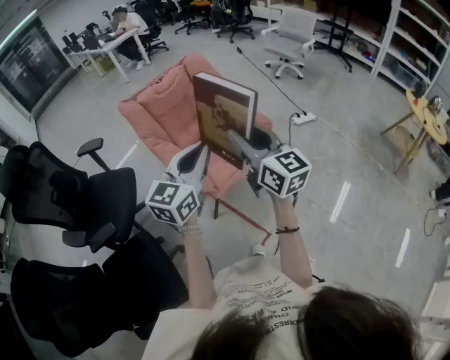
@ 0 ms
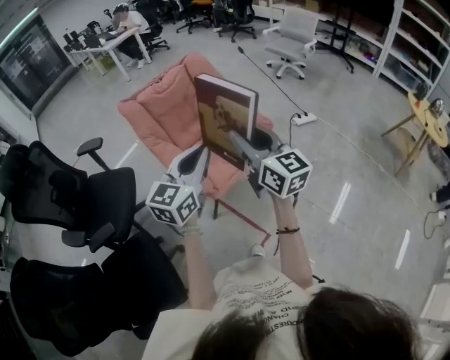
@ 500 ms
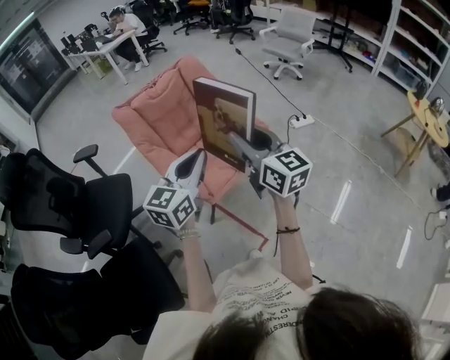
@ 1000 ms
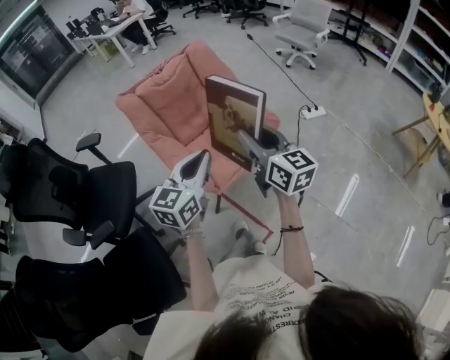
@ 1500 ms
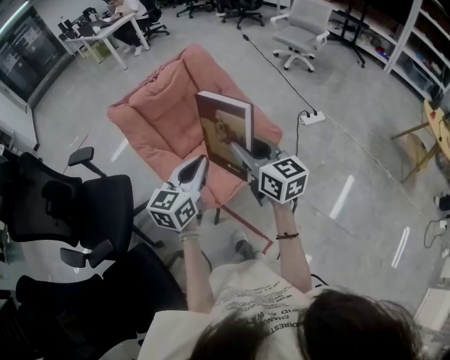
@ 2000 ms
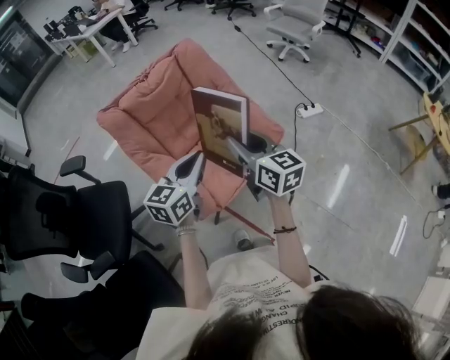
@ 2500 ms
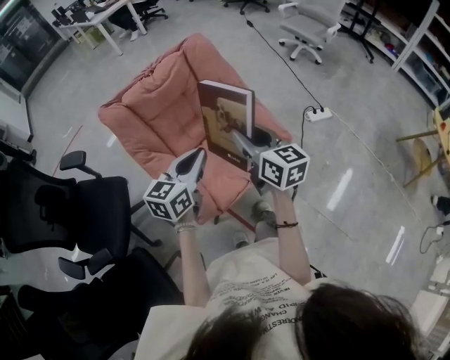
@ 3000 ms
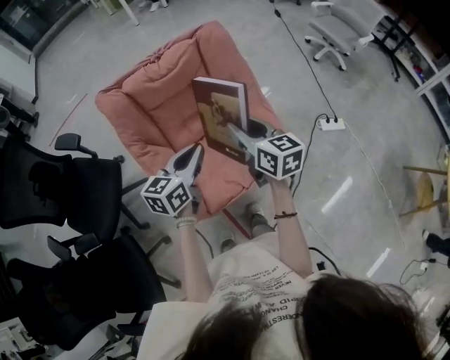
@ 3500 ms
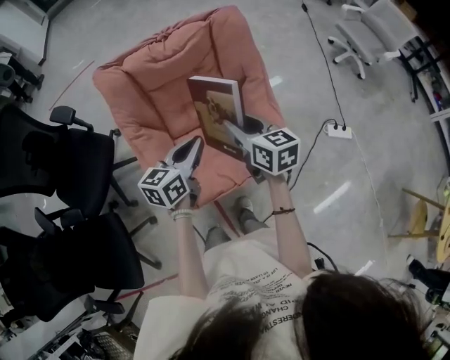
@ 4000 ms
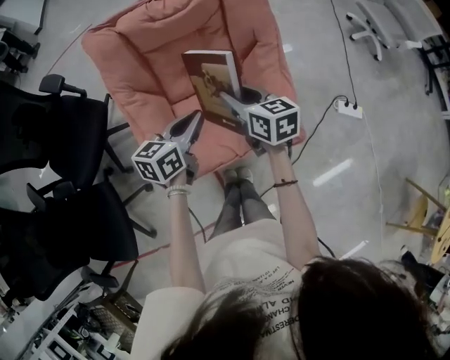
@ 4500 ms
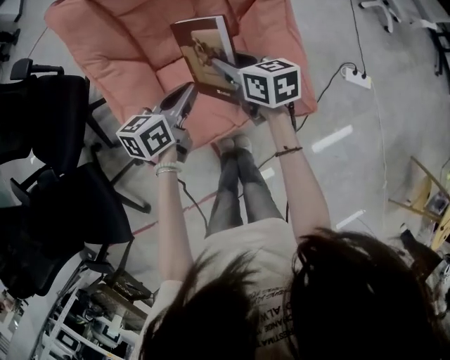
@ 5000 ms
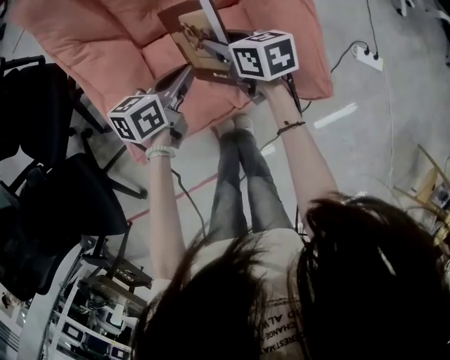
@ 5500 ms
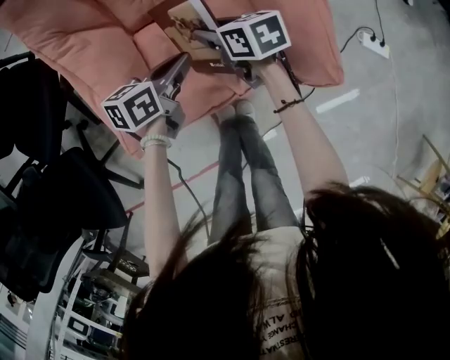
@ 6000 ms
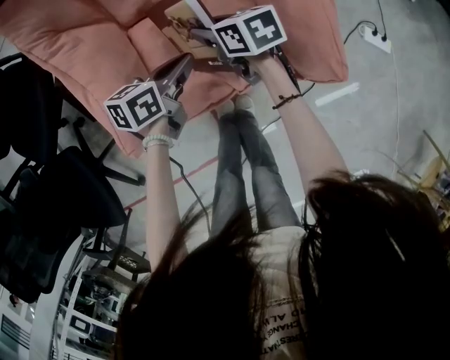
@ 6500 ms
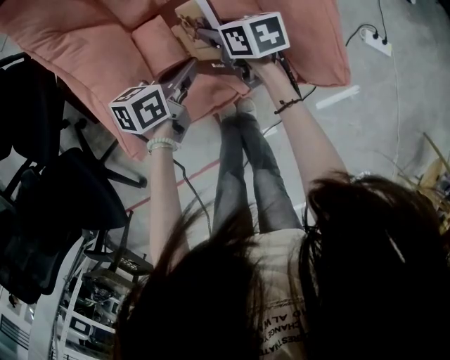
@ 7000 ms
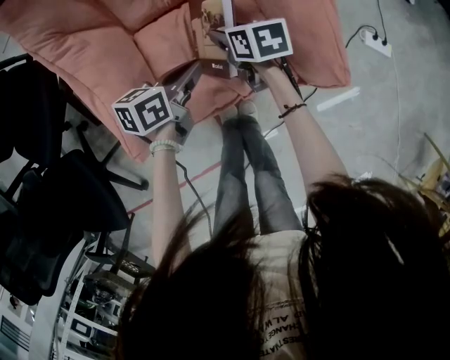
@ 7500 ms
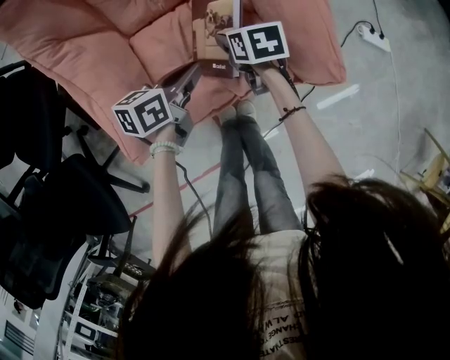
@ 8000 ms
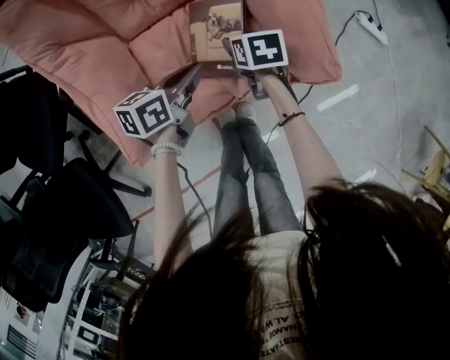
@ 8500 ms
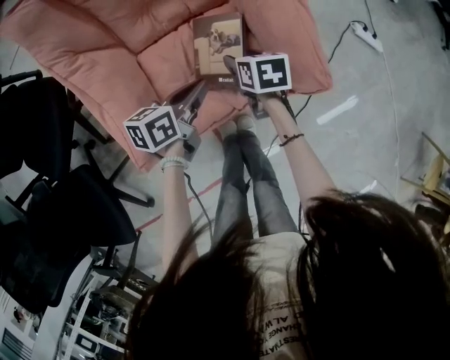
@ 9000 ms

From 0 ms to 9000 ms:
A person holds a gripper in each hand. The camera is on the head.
From 0 ms to 2000 ms: The two grippers go about 20 cm forward and downward.
From 2000 ms to 4500 ms: The left gripper ends up about 35 cm from where it was, and rotates some 30 degrees; the right gripper moves approximately 40 cm, and changes its angle by approximately 40 degrees.
From 4500 ms to 7000 ms: The two grippers go approximately 30 cm downward. The right gripper swivels roughly 20 degrees. The left gripper changes its angle by approximately 20 degrees.
From 7000 ms to 9000 ms: The right gripper goes approximately 10 cm to the right, swivels roughly 20 degrees, and opens up.

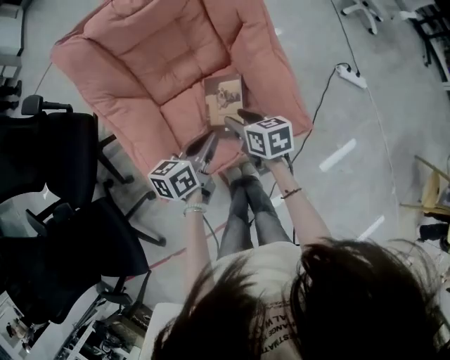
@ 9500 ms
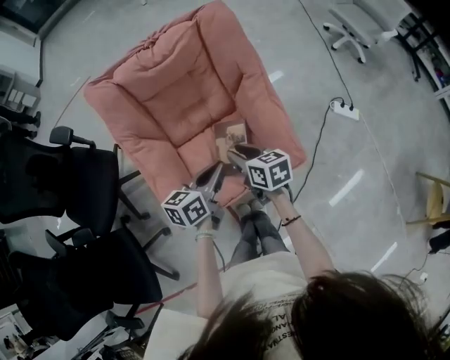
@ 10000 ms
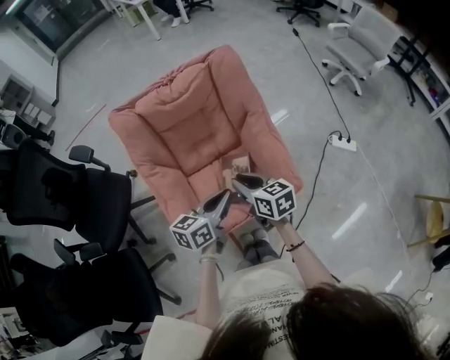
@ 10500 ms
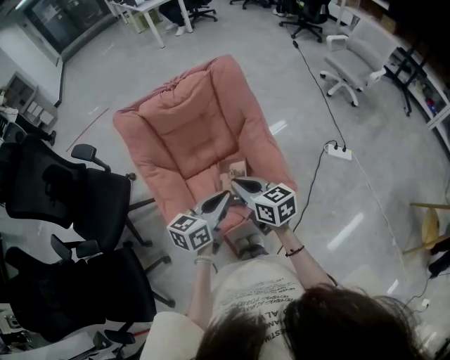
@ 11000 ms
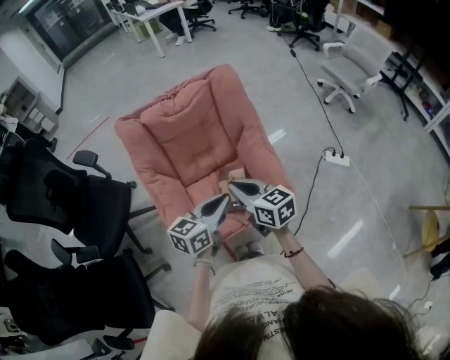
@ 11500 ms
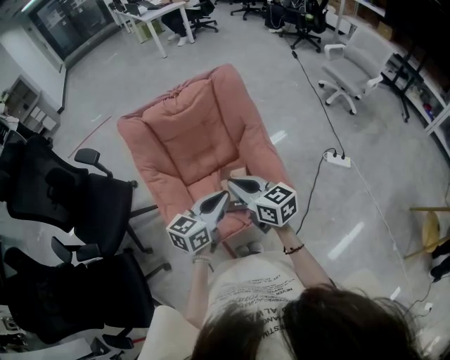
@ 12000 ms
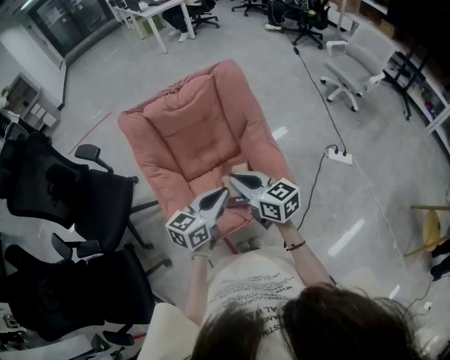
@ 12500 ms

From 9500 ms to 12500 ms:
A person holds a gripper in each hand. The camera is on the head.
From 9500 ms to 11000 ms: Both grippers move upward, some 25 cm. The right gripper rotates some 20 degrees, and closes.
From 11000 ms to 12500 ms: There are only small adjustments of the grippers.

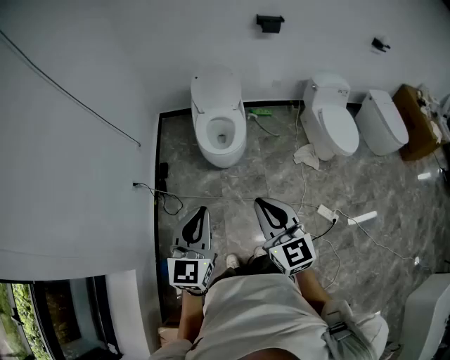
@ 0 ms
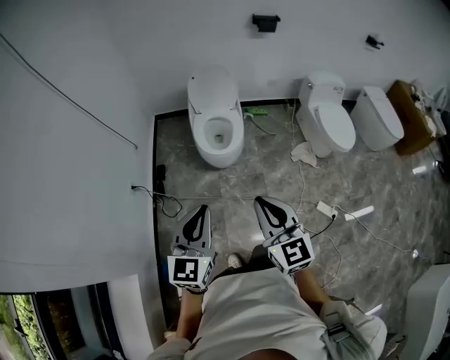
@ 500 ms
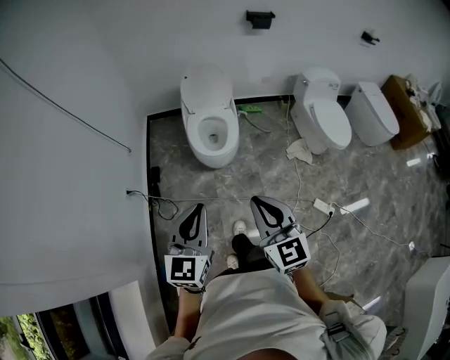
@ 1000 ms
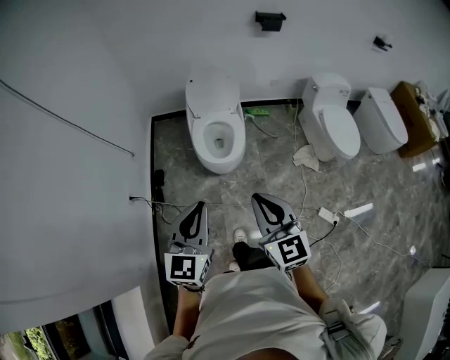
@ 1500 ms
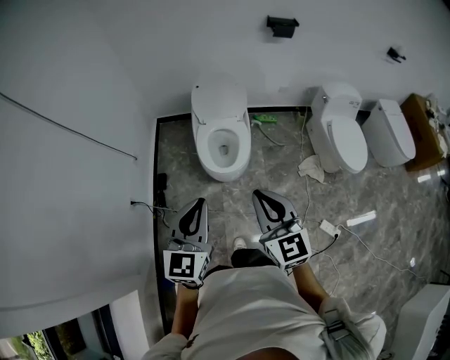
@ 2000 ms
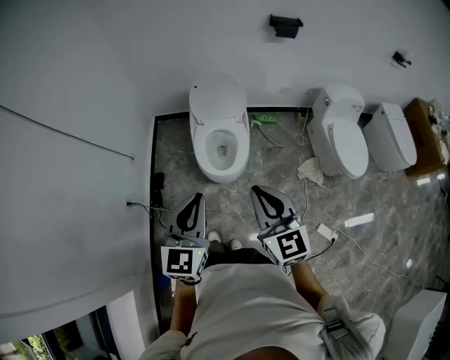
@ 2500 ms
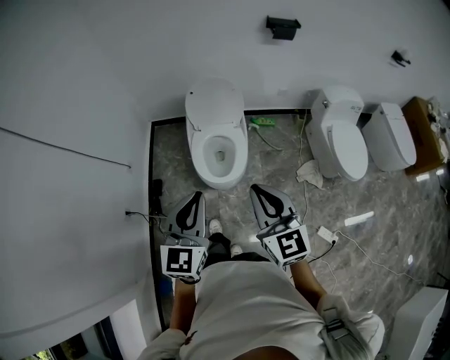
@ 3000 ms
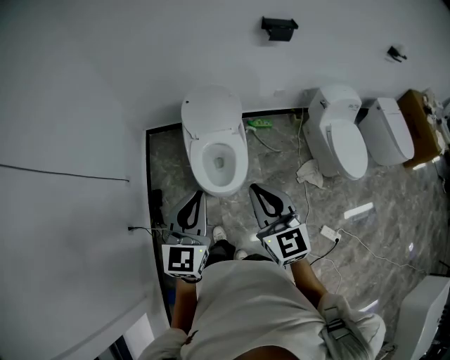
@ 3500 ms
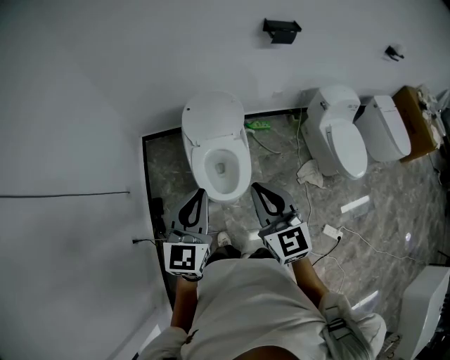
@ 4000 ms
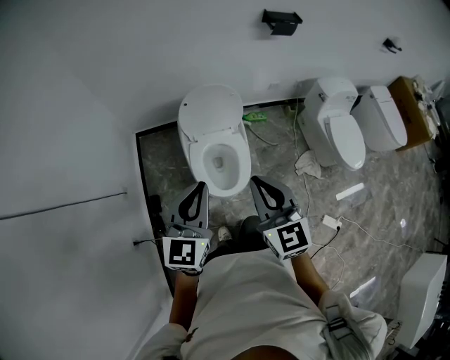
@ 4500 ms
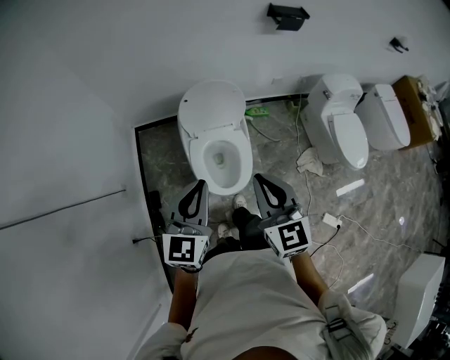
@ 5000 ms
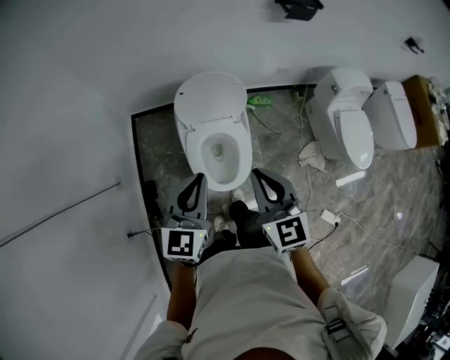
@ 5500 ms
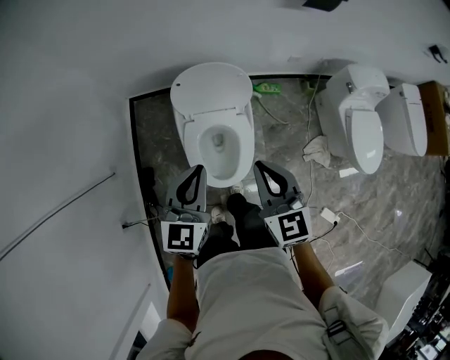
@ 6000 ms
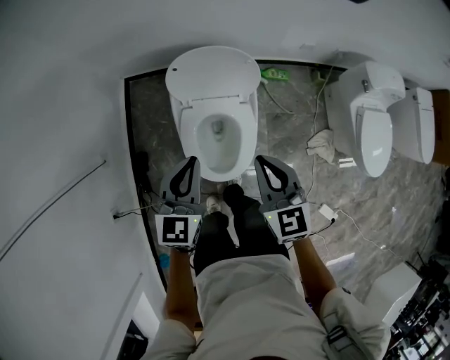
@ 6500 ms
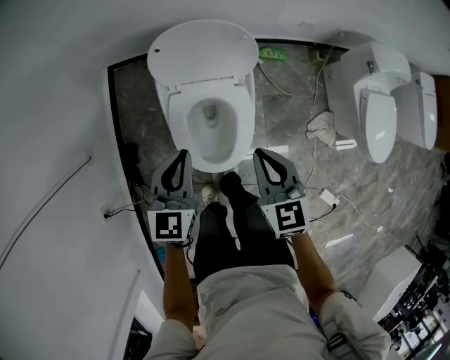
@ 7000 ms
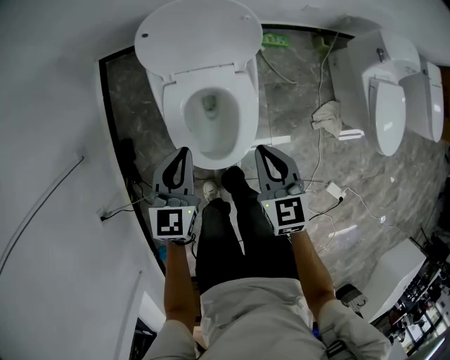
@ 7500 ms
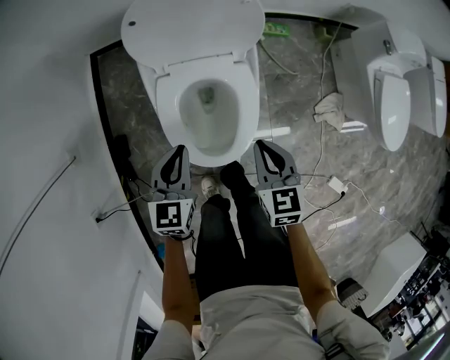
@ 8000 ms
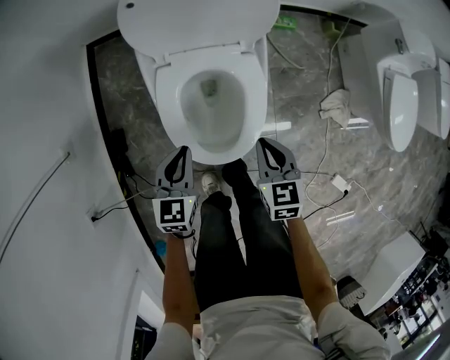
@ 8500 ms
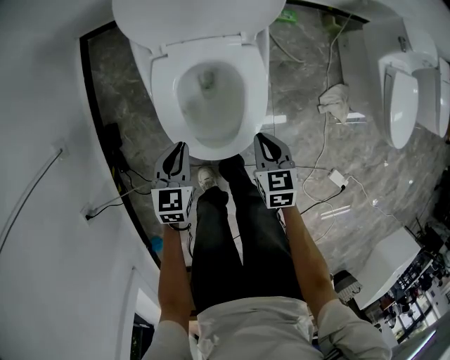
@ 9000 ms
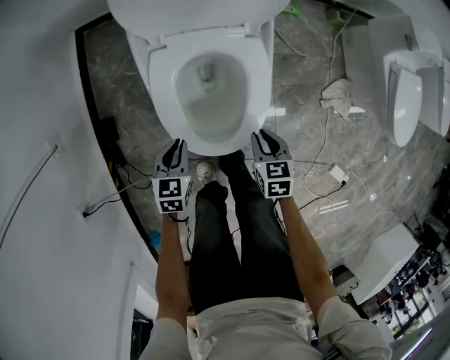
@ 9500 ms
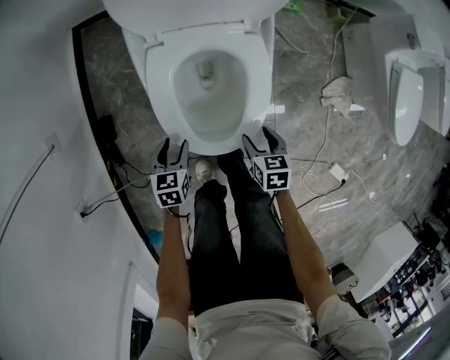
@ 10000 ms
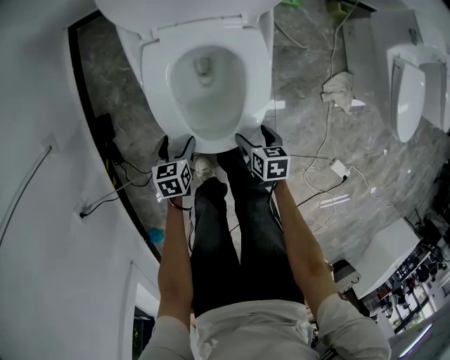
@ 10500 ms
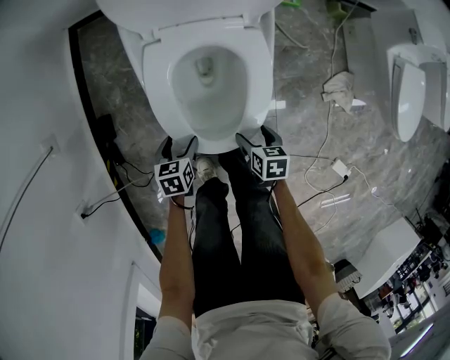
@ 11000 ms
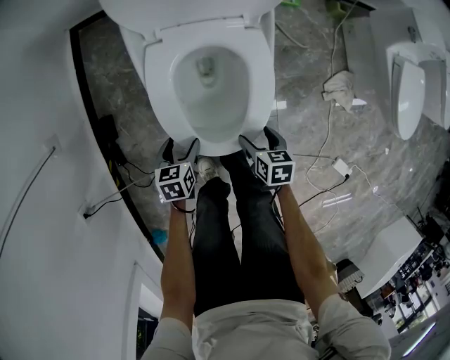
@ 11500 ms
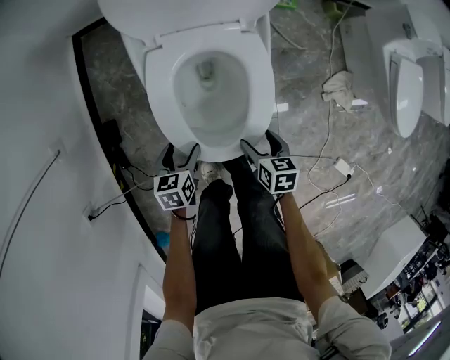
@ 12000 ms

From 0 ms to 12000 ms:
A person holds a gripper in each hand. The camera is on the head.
From 0 ms to 2000 ms: Both grippers move forward, some 20 cm.
From 2000 ms to 4000 ms: Both grippers travel together forward, some 25 cm.
From 4000 ms to 6000 ms: The two grippers go roughly 25 cm forward and downward.
From 6000 ms to 8000 ms: The two grippers go some 35 cm downward. The right gripper rotates roughly 20 degrees.
From 8000 ms to 10000 ms: Both grippers travel together downward, some 25 cm. The left gripper turns by about 30 degrees, and opens. Meanwhile the right gripper changes its angle by approximately 30 degrees, and opens.
From 10000 ms to 12000 ms: The left gripper opens.

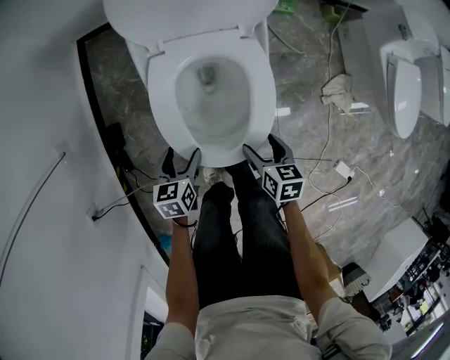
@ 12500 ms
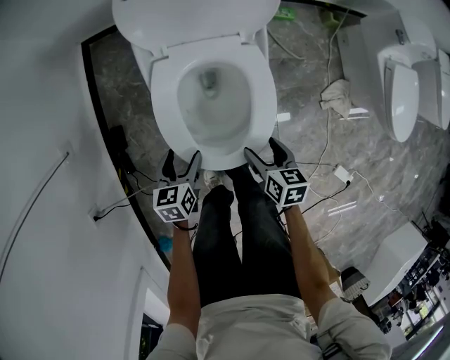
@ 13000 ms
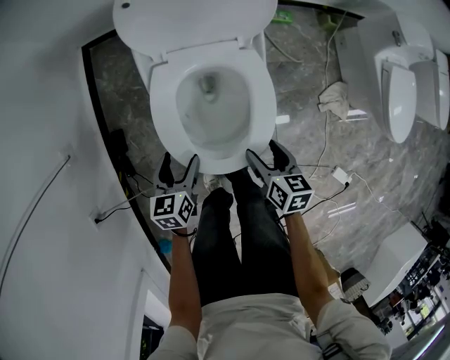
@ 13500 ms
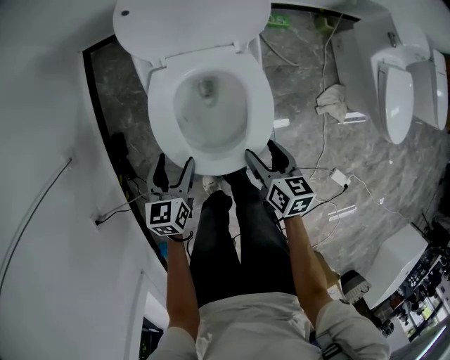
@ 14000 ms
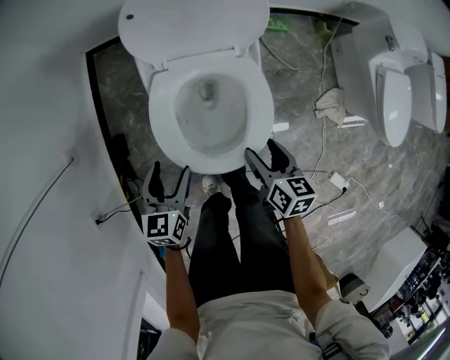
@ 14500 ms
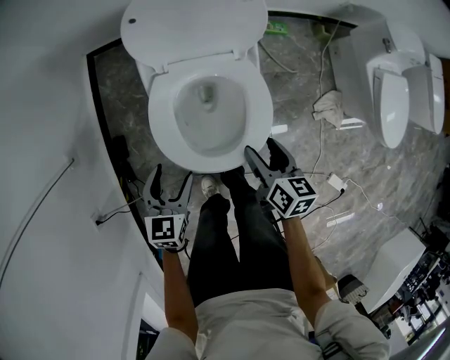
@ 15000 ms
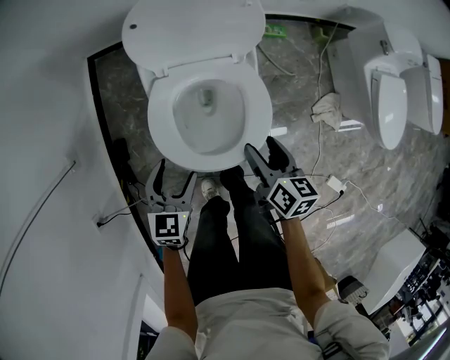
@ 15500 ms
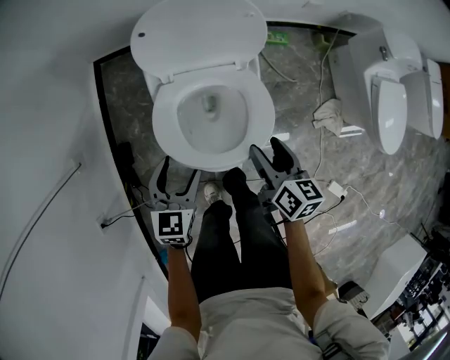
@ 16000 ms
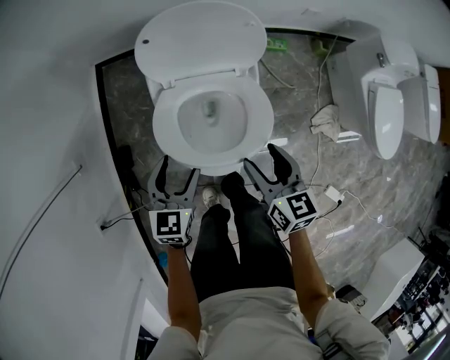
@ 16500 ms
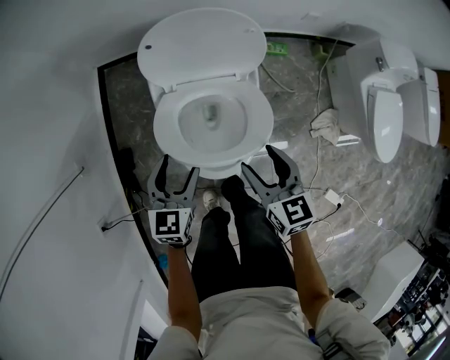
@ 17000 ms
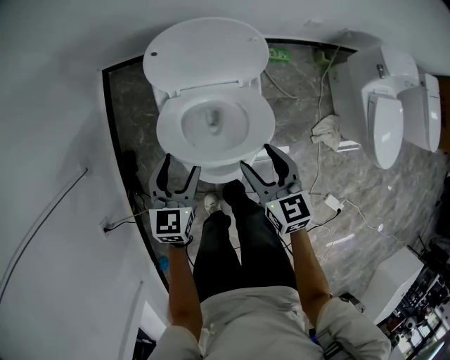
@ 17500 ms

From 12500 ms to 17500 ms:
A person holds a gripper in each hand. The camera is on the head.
From 12500 ms to 15000 ms: The right gripper heads upward and forward, covering approximately 15 cm. The left gripper heads upward, covering some 15 cm, and rotates some 20 degrees.
From 15000 ms to 17500 ms: The right gripper moves upward and forward, approximately 10 cm, and rotates some 30 degrees. Meanwhile the left gripper travels forward and upward by approximately 15 cm.
